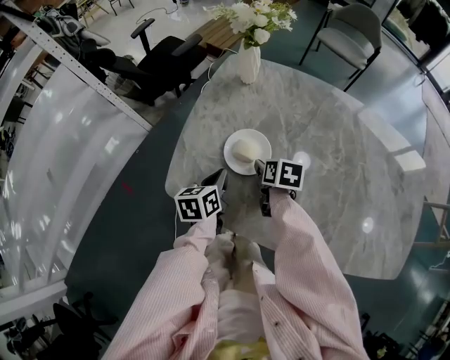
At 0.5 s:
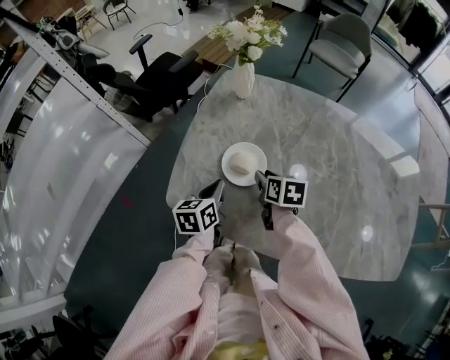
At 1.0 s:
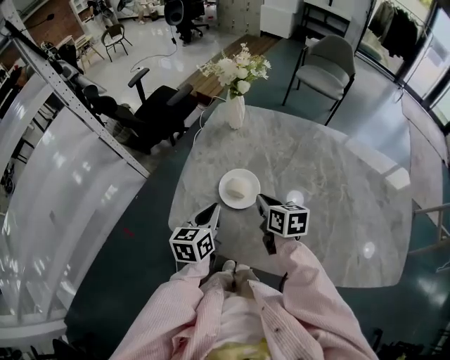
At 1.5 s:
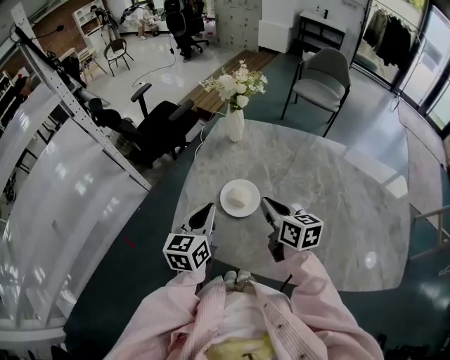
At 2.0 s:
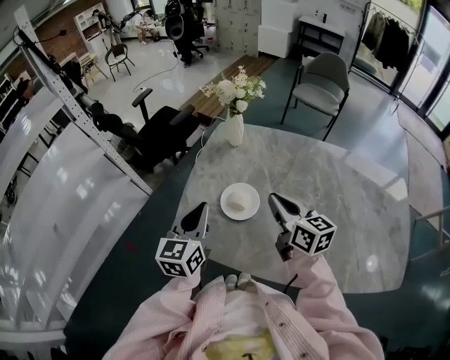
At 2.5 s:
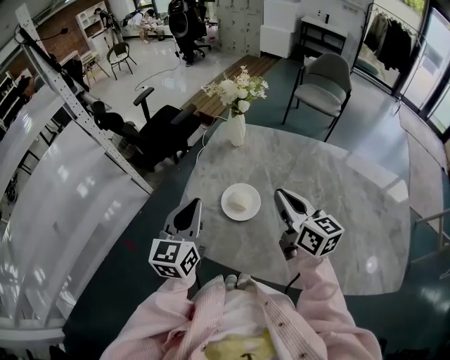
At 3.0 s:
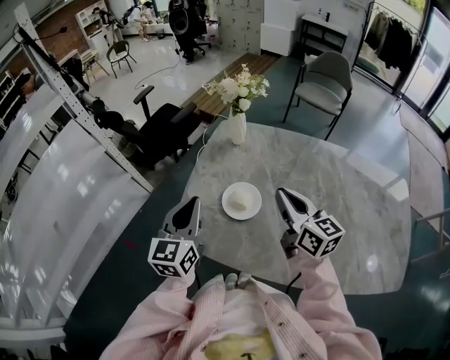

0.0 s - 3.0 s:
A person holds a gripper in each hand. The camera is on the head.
0.0 s - 1.5 s: Both grippers travel together upward, approximately 15 cm. The left gripper swivels about 30 degrees; the right gripper angles its fingers upward, by some 30 degrees, and closes its fingers.
1.5 s - 3.0 s: The grippers both shift upward by roughly 10 cm.

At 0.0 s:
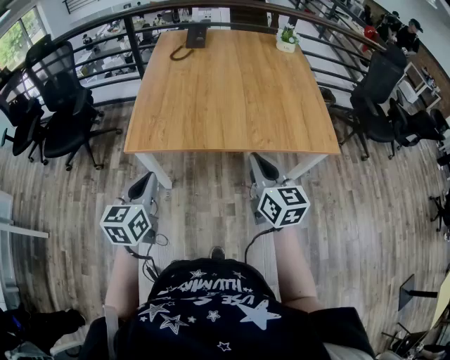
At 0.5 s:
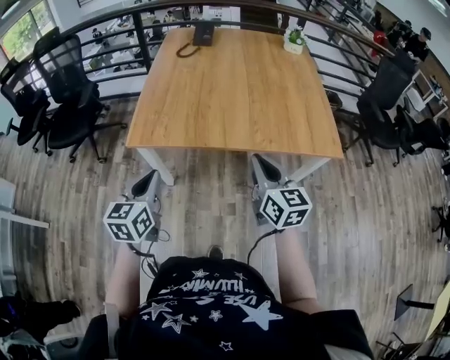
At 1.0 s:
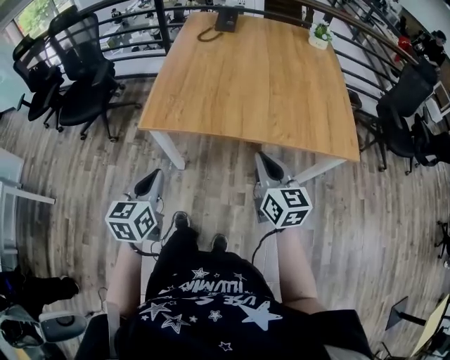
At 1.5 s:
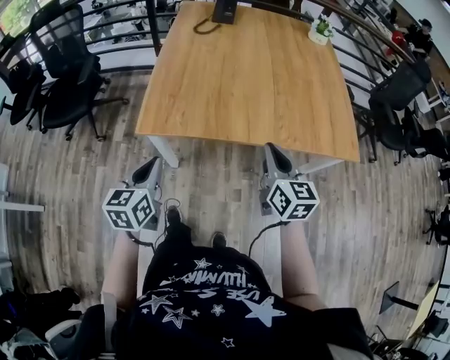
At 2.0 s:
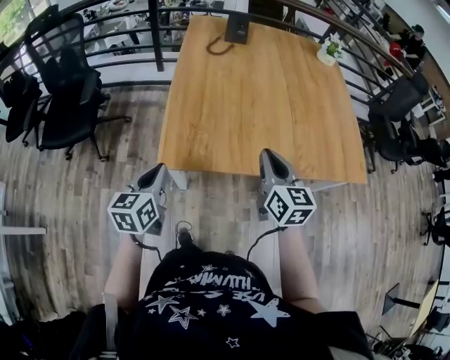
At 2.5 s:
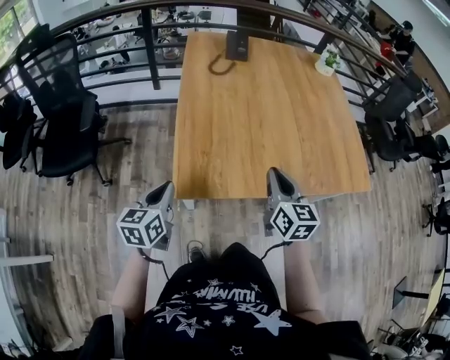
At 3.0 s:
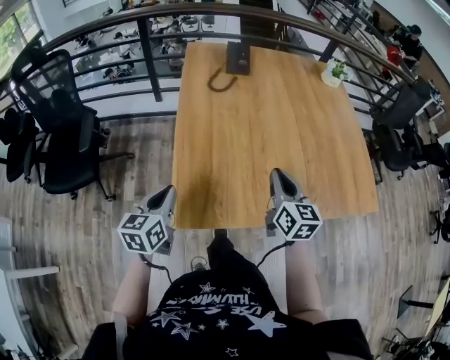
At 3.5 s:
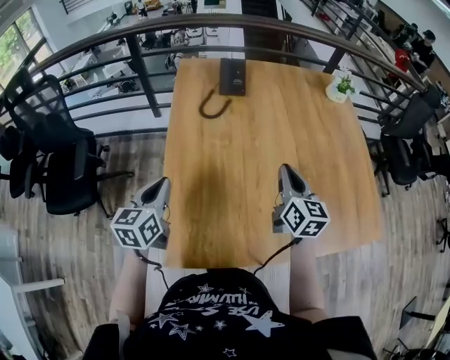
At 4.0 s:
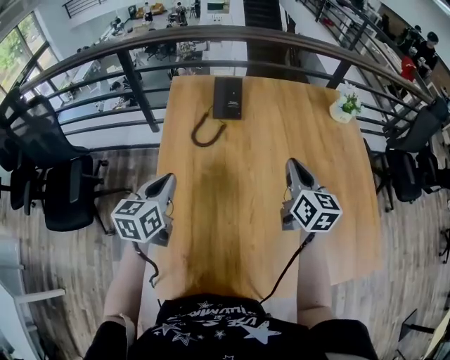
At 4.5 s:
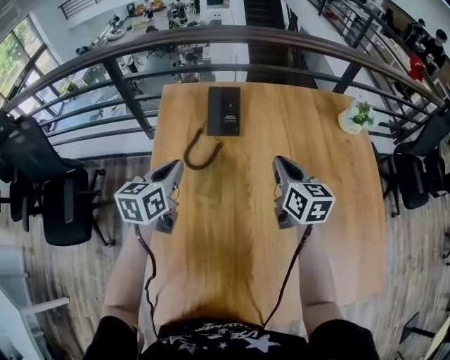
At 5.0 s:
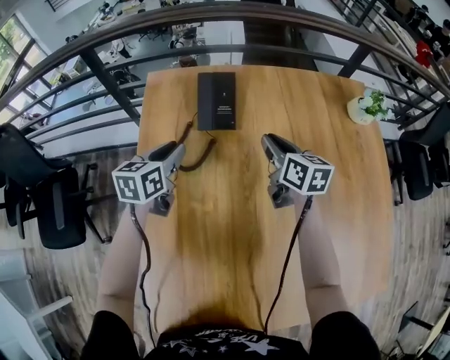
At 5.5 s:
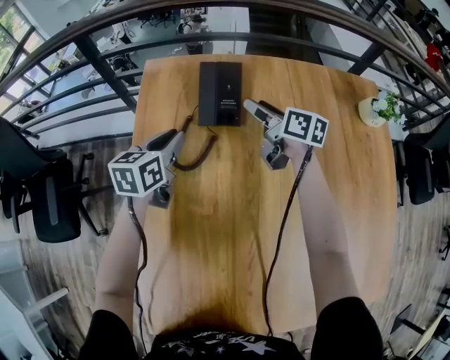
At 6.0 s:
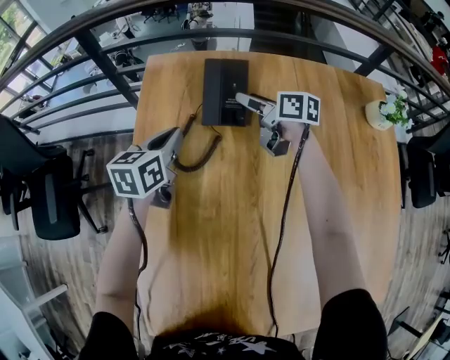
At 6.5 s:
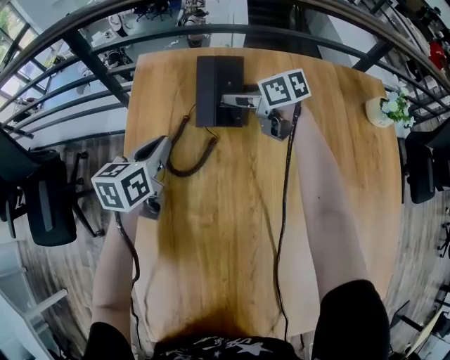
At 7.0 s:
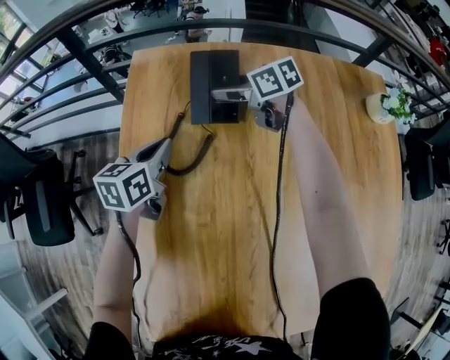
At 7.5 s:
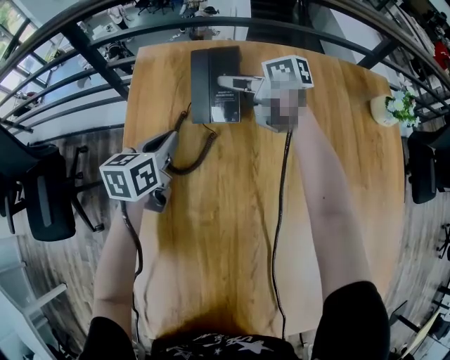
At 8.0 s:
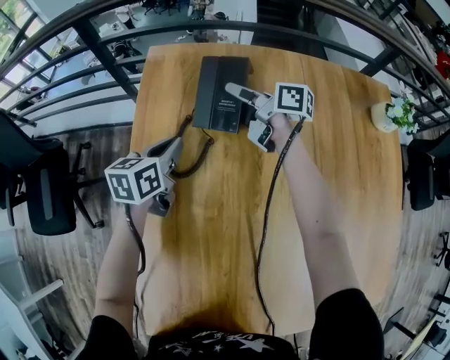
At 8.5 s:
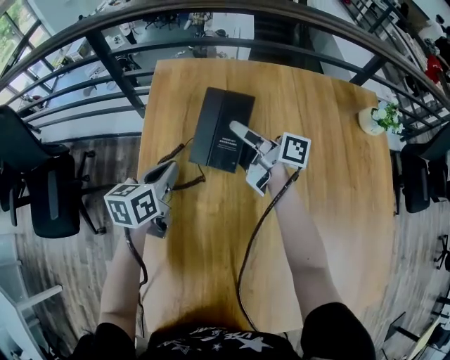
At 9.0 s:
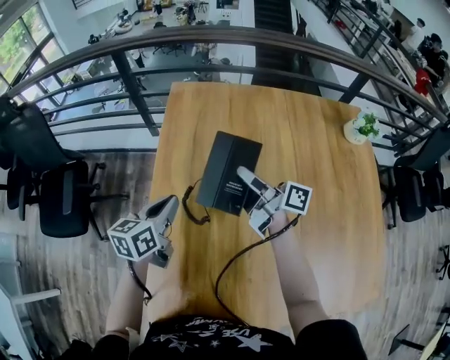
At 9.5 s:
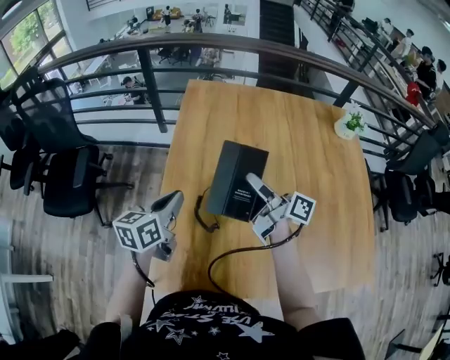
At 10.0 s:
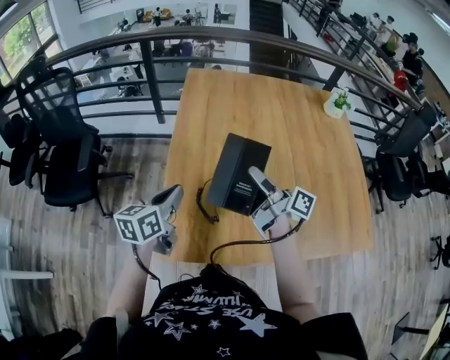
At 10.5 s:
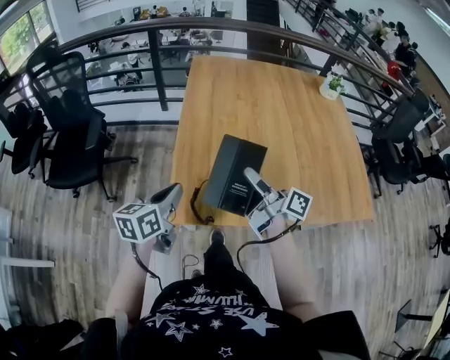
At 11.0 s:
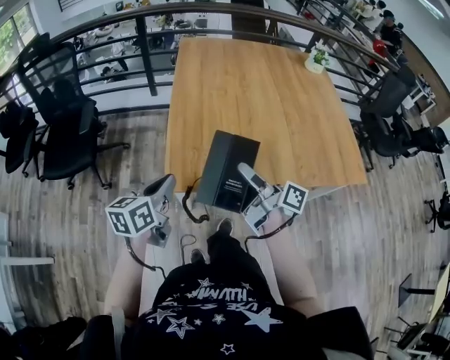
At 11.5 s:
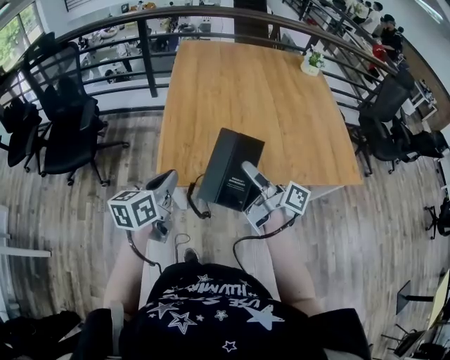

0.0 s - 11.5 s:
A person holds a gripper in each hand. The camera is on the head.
0.0 s - 2.0 s: The grippers both shift forward and to the left by some 20 cm.
2.0 s - 4.0 s: Both grippers are carried forward, approximately 40 cm.
4.0 s - 6.0 s: The two grippers go roughly 35 cm forward and downward. The right gripper turns by about 40 degrees, and opens up, while the left gripper opens and closes again.
6.0 s - 7.5 s: The right gripper changes place by approximately 5 cm.
7.5 s - 9.5 s: The left gripper shifts some 35 cm backward and to the left. The right gripper travels backward by roughly 40 cm, and turns by about 40 degrees.
9.5 s - 11.5 s: The two grippers go about 35 cm backward.

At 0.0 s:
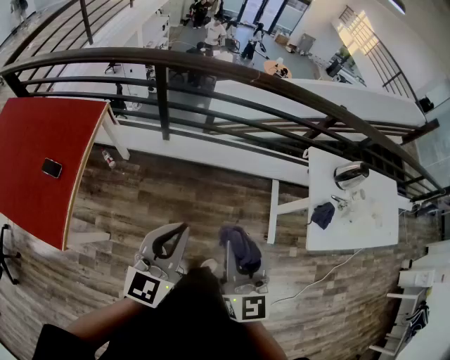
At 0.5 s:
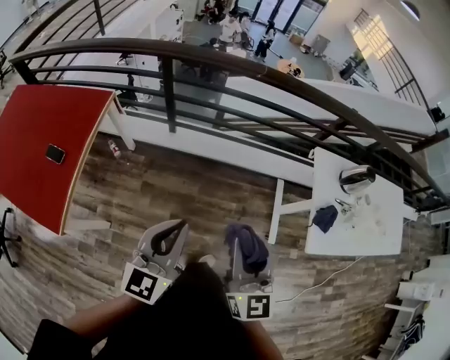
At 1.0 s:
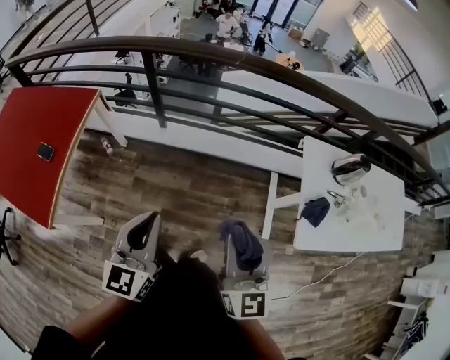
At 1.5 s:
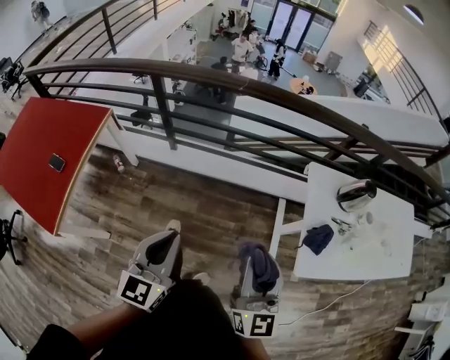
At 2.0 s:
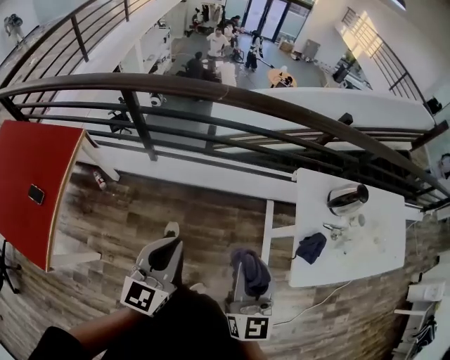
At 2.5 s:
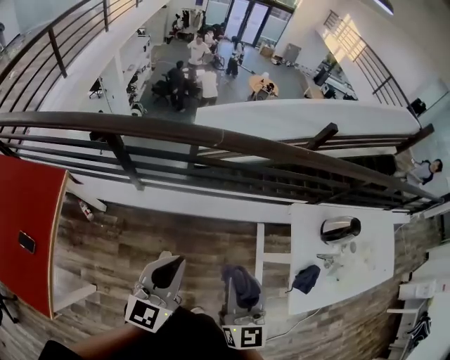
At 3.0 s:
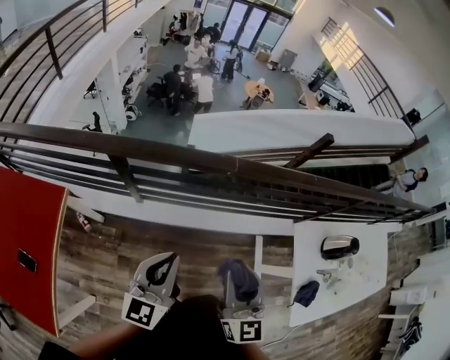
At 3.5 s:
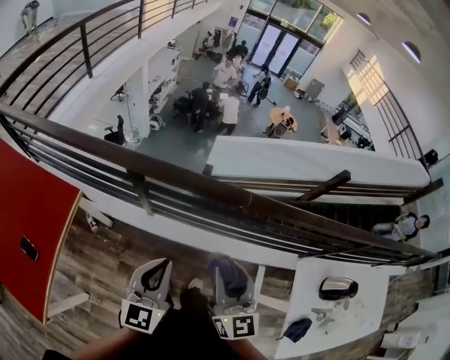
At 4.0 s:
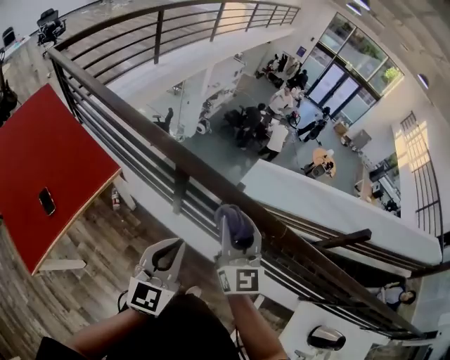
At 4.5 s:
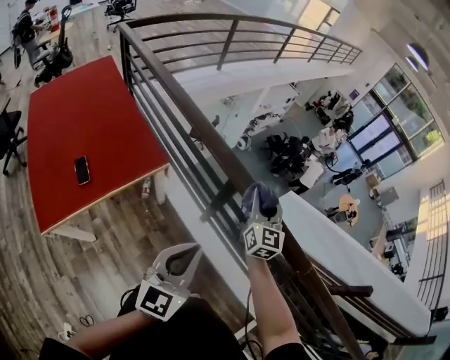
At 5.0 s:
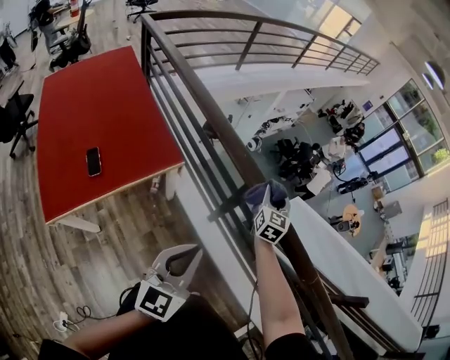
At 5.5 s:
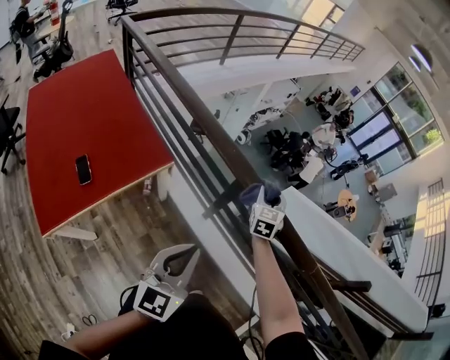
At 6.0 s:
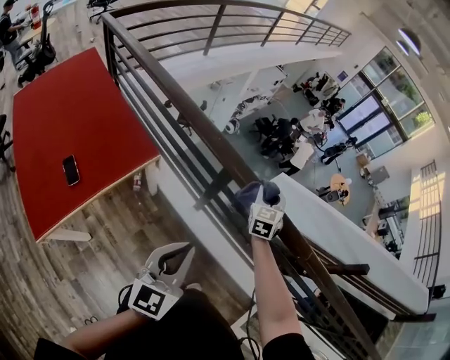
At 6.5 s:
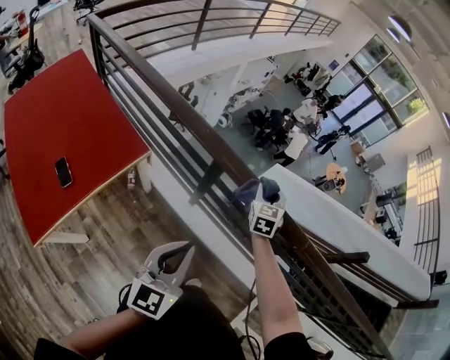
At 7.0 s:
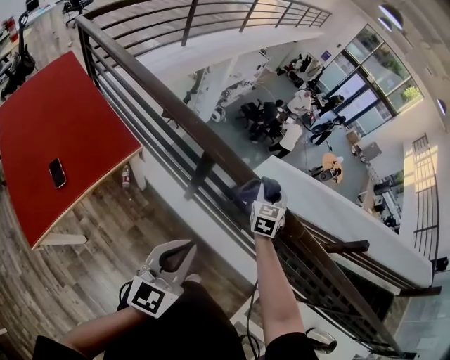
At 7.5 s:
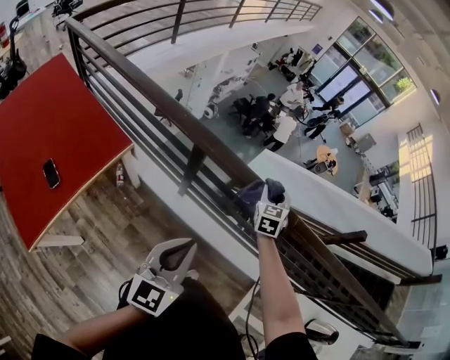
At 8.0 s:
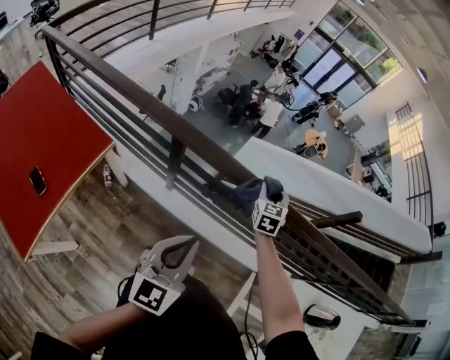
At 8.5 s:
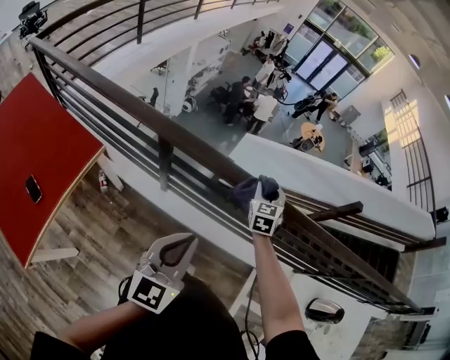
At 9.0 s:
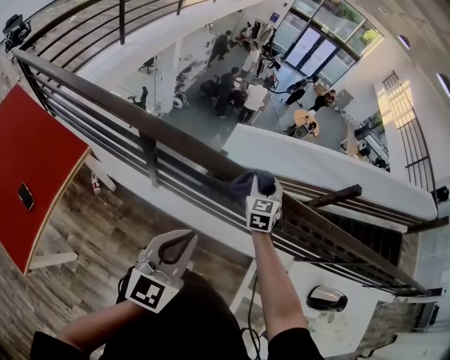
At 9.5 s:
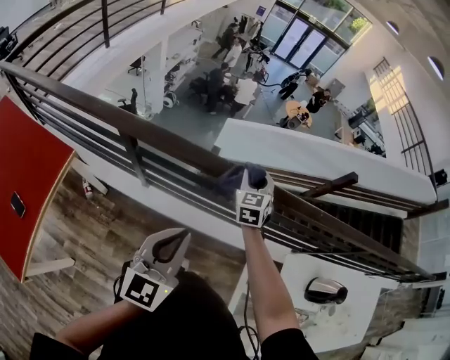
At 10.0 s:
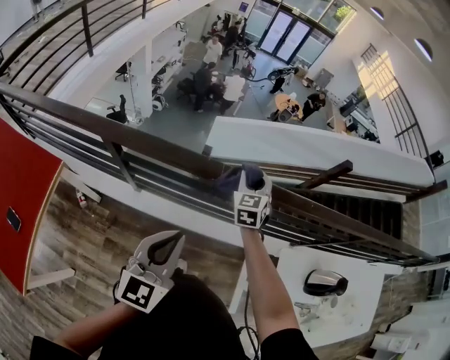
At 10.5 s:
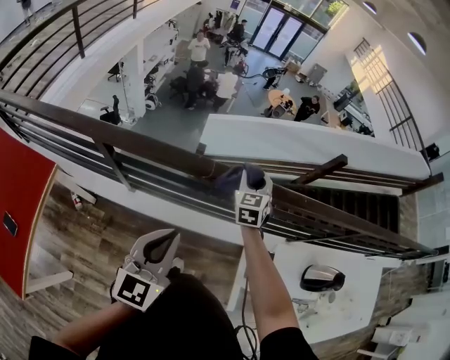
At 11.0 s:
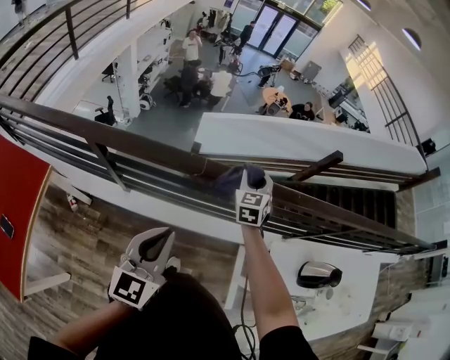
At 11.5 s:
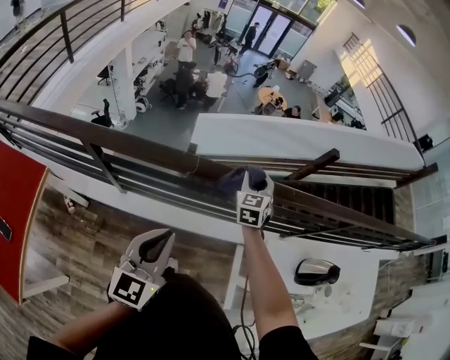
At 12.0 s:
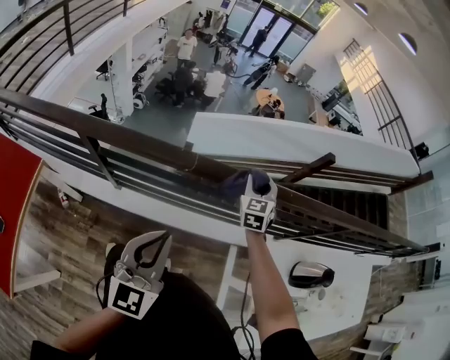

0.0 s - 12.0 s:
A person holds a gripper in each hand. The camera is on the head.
0.0 s - 2.0 s: The grippers both shift to the right and forward by some 15 cm.
2.0 s - 4.0 s: The left gripper shifts by some 30 cm, and turns by some 30 degrees. Meanwhile the right gripper changes place by roughly 50 cm, and rotates about 40 degrees.
4.0 s - 6.0 s: The left gripper shifts some 5 cm to the left. The right gripper travels forward and downward by roughly 25 cm, and turns by about 40 degrees.
6.0 s - 8.0 s: The right gripper goes some 20 cm to the right; the left gripper shifts some 10 cm to the right.
8.0 s - 10.0 s: The two grippers go some 15 cm to the right.
10.0 s - 12.0 s: The right gripper is displaced to the right by approximately 10 cm.
